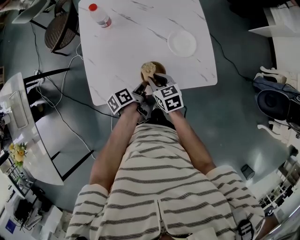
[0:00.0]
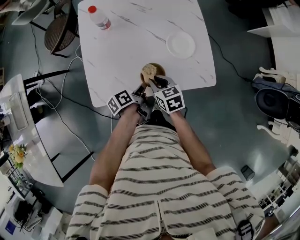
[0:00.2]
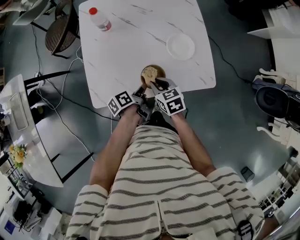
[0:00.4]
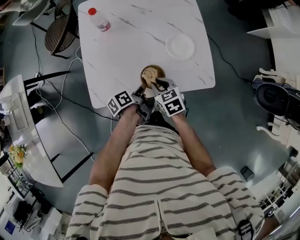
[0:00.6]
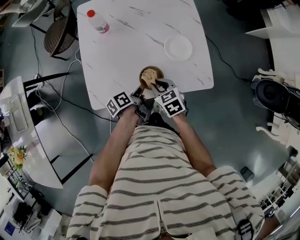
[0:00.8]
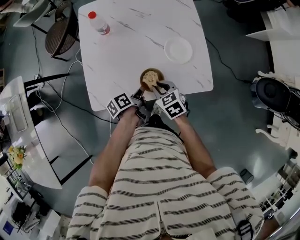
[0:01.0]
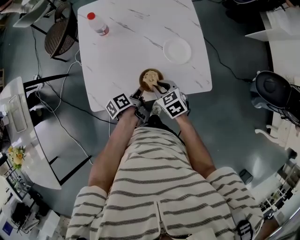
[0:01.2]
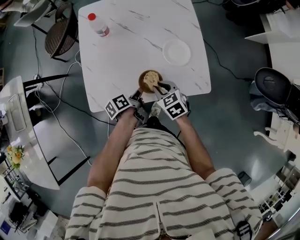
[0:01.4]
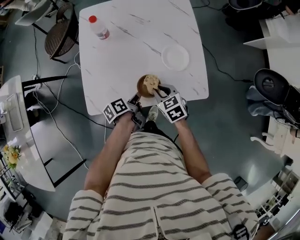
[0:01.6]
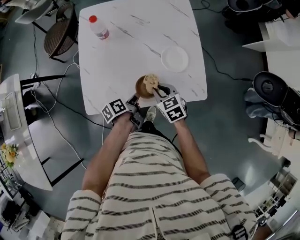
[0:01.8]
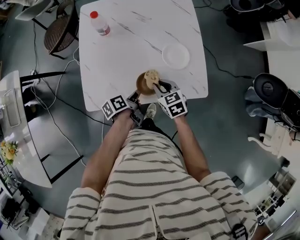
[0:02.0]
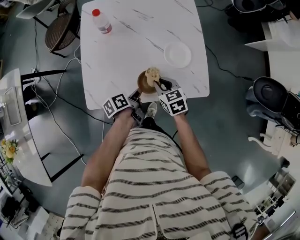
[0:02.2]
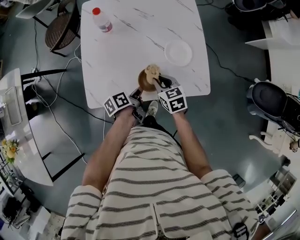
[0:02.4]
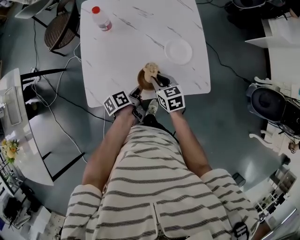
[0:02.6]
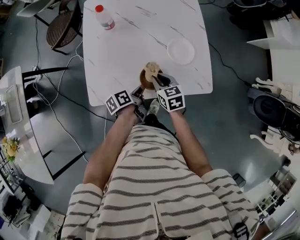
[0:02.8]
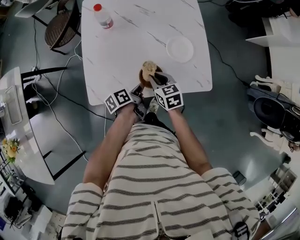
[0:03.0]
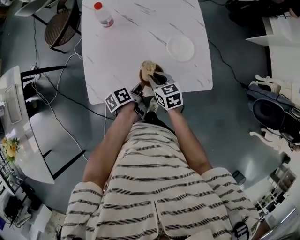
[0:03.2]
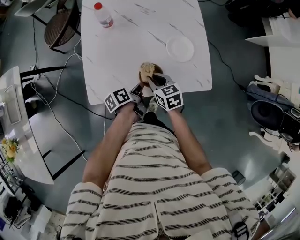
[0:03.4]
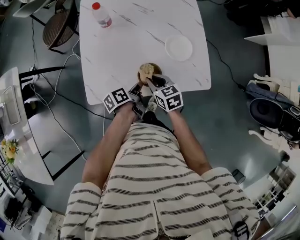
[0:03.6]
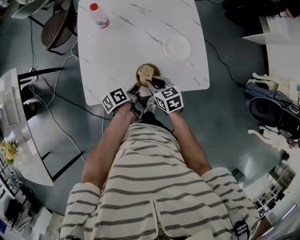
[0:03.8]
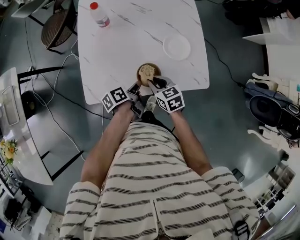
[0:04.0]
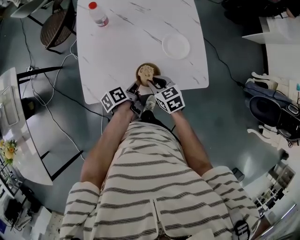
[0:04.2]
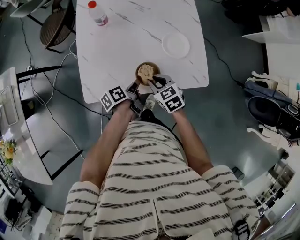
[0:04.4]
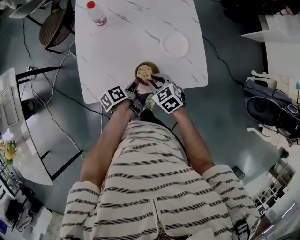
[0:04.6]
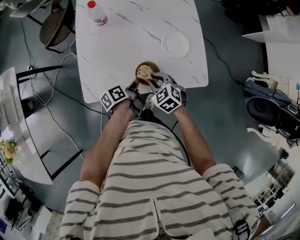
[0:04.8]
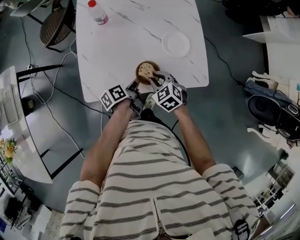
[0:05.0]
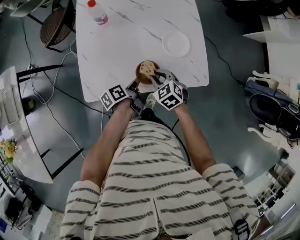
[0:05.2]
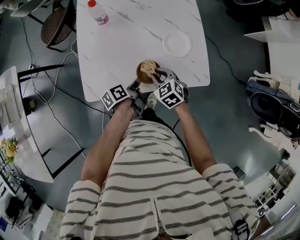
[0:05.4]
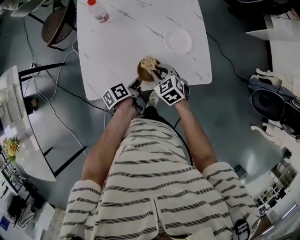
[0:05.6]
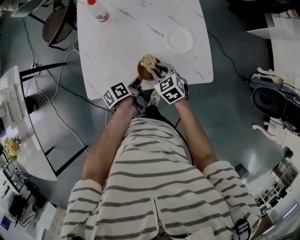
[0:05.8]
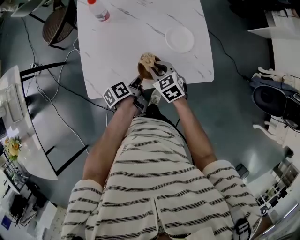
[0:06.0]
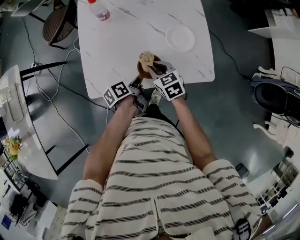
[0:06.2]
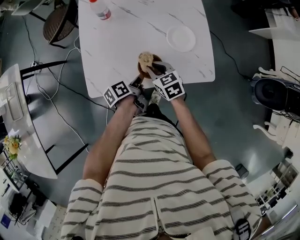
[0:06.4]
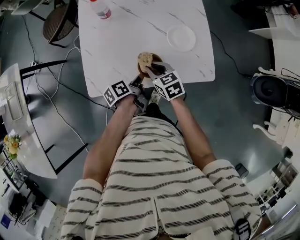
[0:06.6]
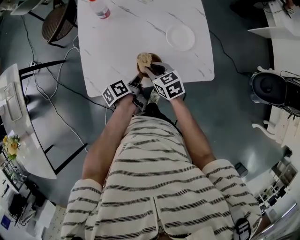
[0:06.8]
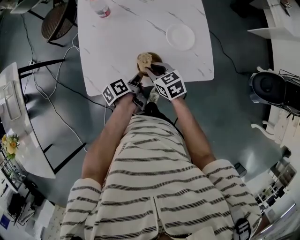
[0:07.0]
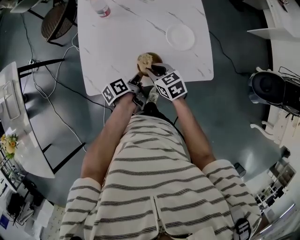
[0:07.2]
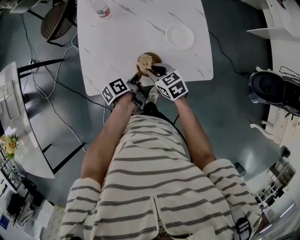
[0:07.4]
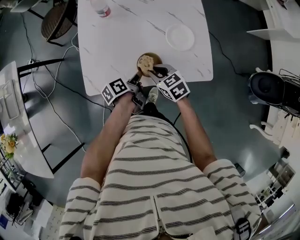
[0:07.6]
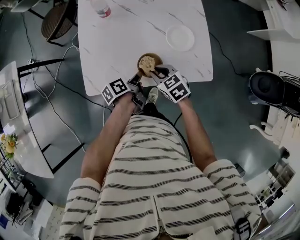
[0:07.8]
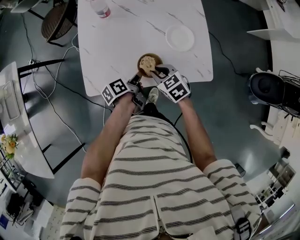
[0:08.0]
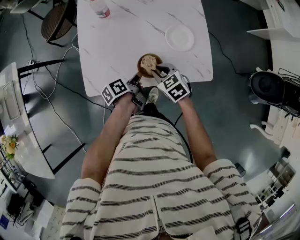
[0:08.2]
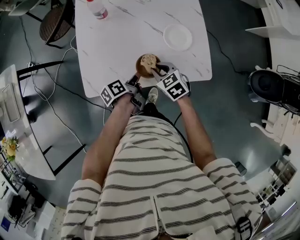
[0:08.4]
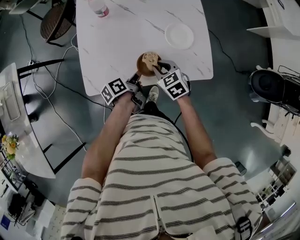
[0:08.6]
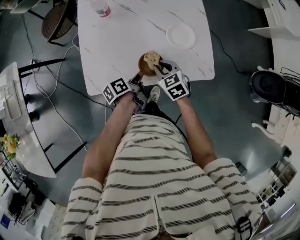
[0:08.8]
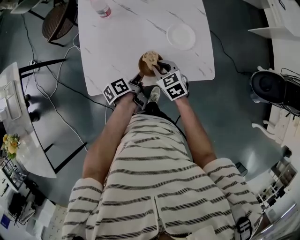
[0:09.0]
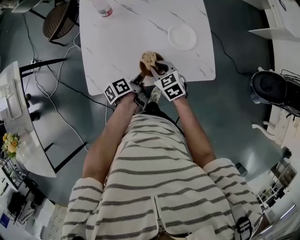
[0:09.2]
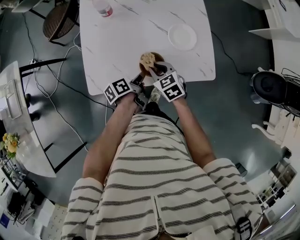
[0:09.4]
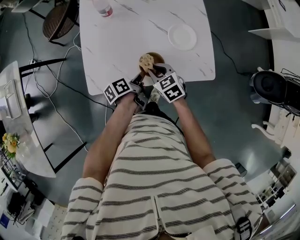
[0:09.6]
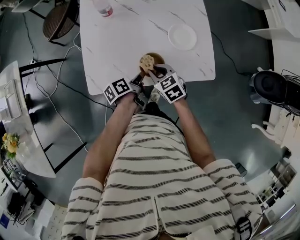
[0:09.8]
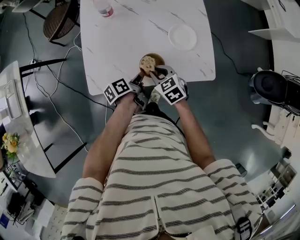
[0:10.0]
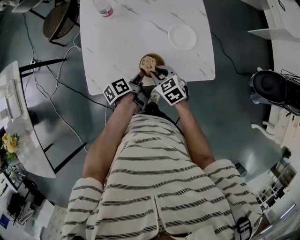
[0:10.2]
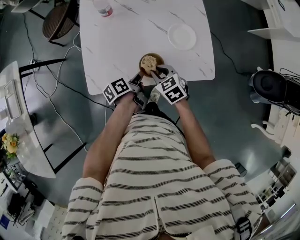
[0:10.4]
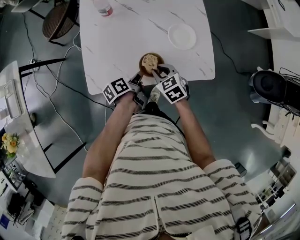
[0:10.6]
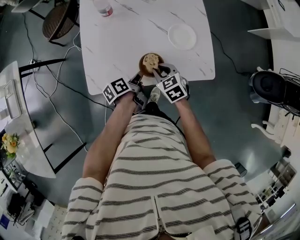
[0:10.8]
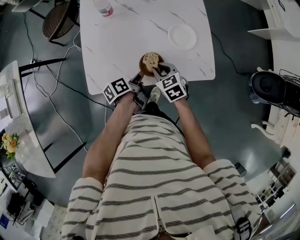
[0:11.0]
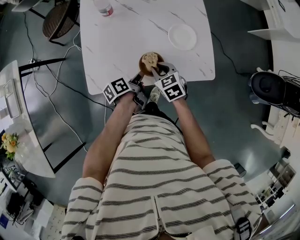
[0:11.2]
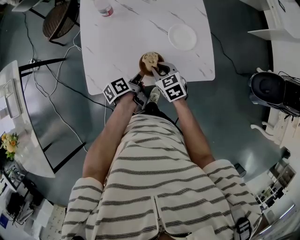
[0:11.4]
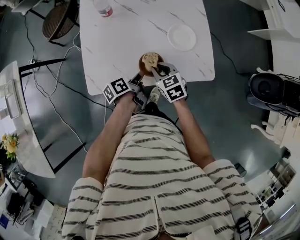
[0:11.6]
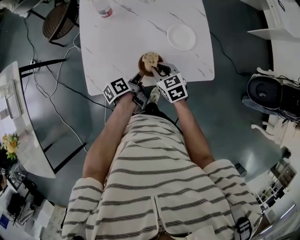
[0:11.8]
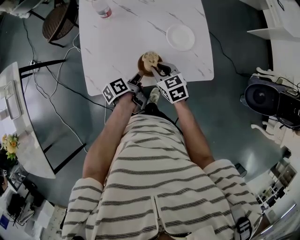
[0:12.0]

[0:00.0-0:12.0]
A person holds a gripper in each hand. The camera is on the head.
0:00.0 to 0:04.4: There are only small adjustments of the grippers.
0:04.4 to 0:12.0: The grippers move only a little.

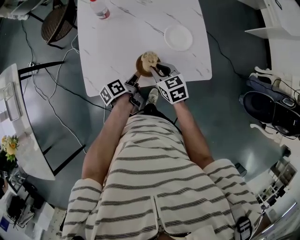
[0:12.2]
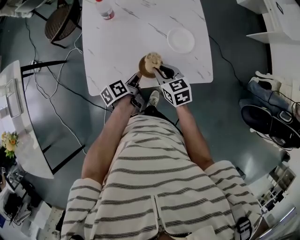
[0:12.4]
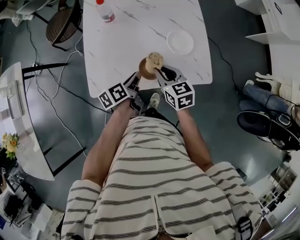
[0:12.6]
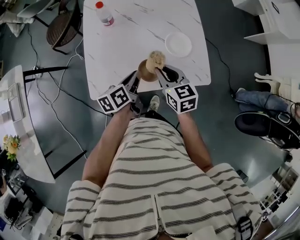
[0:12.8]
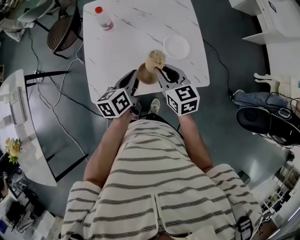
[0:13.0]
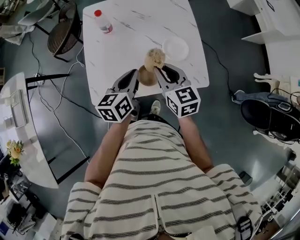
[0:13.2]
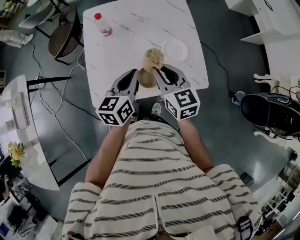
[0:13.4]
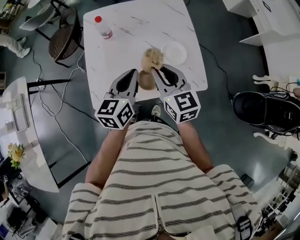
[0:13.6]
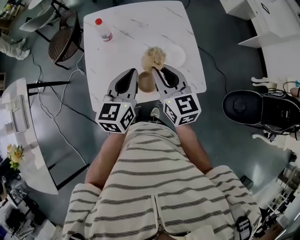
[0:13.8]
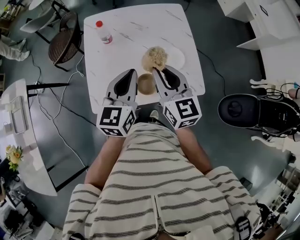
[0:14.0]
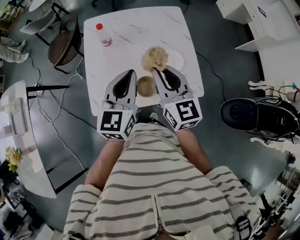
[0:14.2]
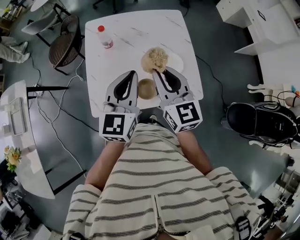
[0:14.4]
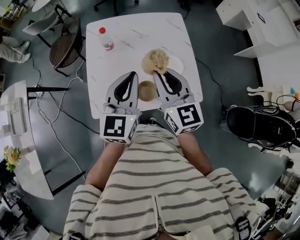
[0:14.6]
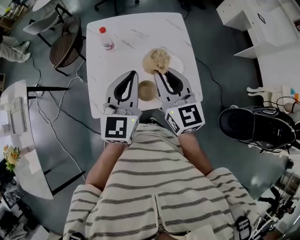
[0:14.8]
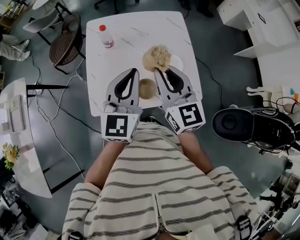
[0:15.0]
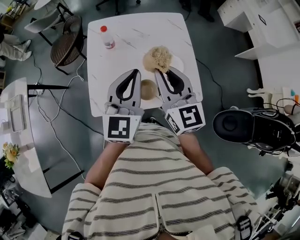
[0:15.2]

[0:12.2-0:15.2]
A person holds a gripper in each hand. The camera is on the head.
0:12.2 to 0:13.8: The two grippers go approximately 25 cm upward. The left gripper rolls clockwise, seen from behind, by approximately 60 degrees. Meanwhile the right gripper changes its angle by some 30 degrees.
0:13.8 to 0:15.2: Both grippers travel together upward, approximately 10 cm. The left gripper swivels roughly 20 degrees.

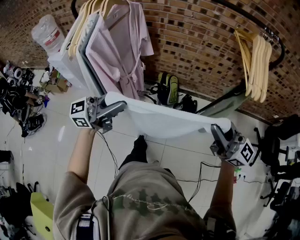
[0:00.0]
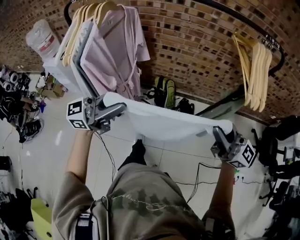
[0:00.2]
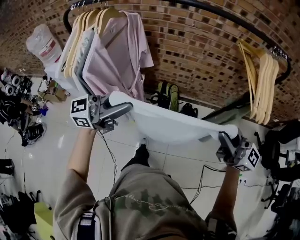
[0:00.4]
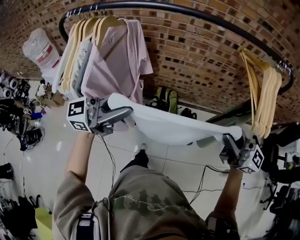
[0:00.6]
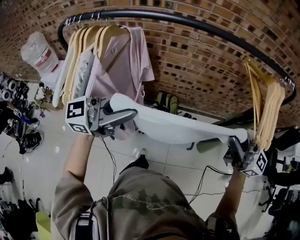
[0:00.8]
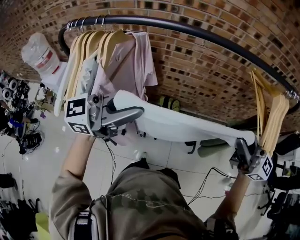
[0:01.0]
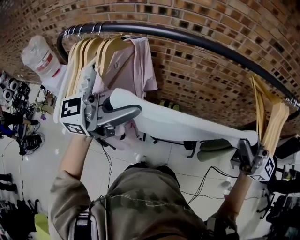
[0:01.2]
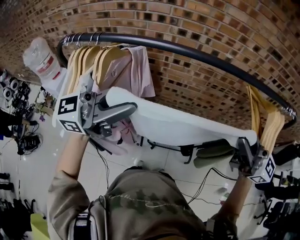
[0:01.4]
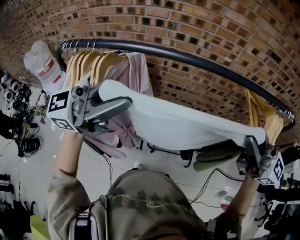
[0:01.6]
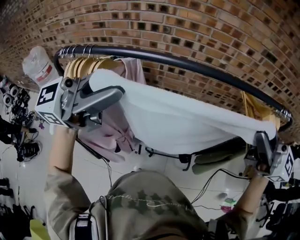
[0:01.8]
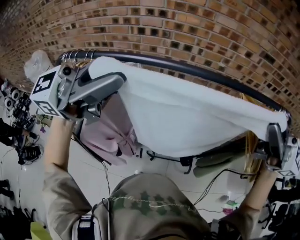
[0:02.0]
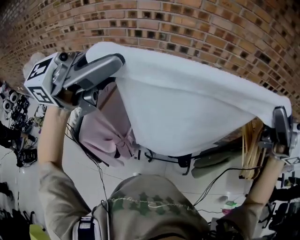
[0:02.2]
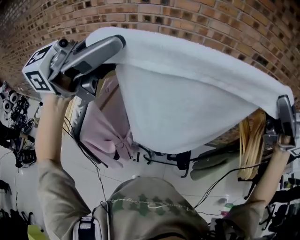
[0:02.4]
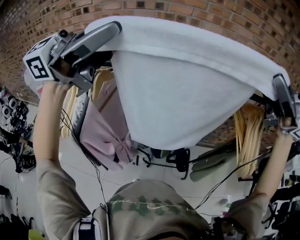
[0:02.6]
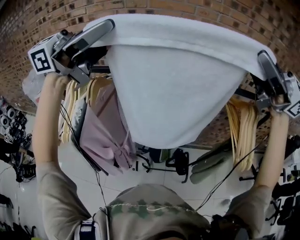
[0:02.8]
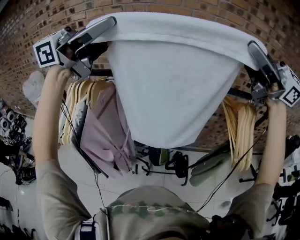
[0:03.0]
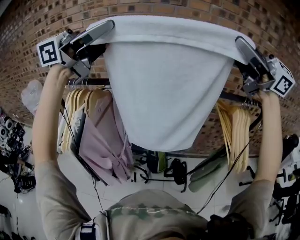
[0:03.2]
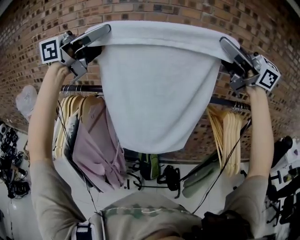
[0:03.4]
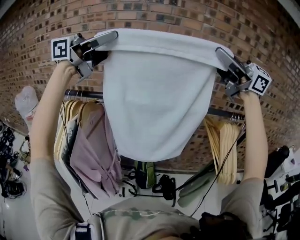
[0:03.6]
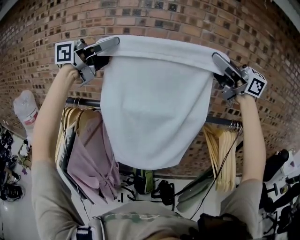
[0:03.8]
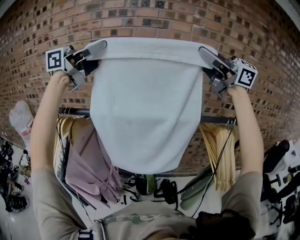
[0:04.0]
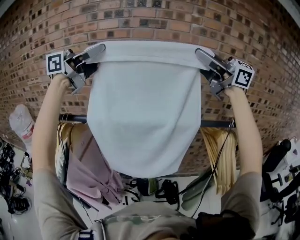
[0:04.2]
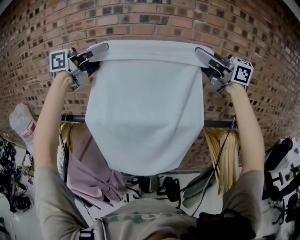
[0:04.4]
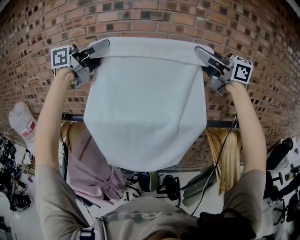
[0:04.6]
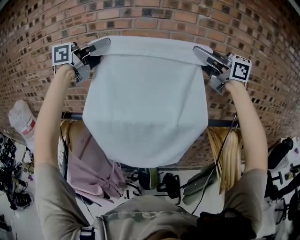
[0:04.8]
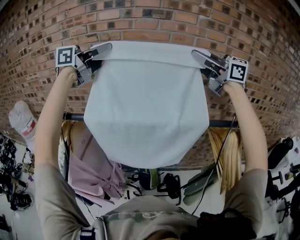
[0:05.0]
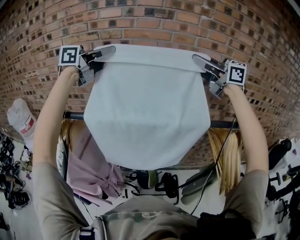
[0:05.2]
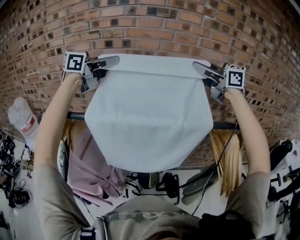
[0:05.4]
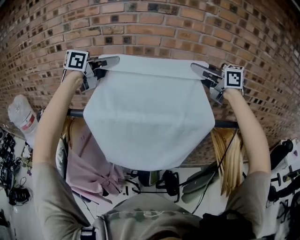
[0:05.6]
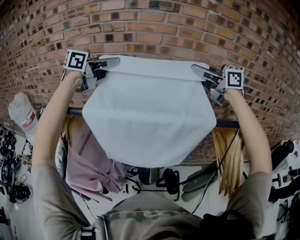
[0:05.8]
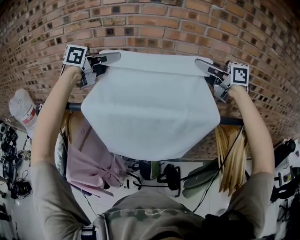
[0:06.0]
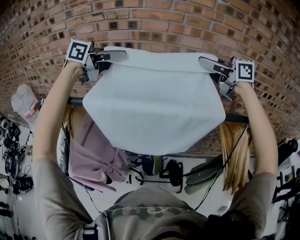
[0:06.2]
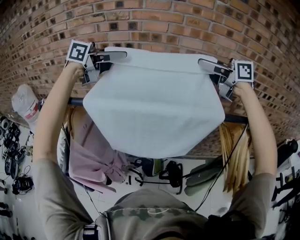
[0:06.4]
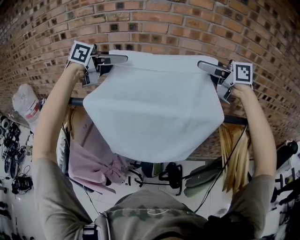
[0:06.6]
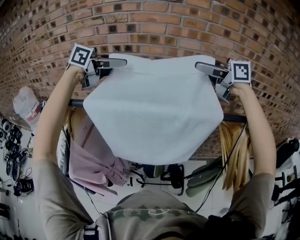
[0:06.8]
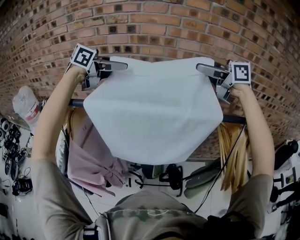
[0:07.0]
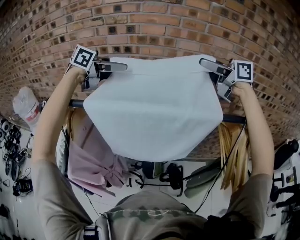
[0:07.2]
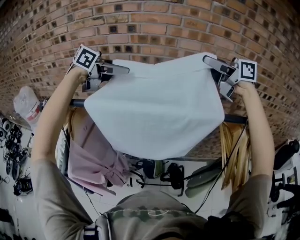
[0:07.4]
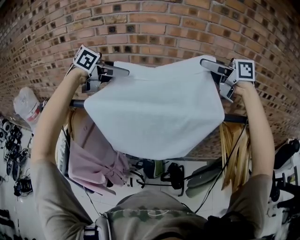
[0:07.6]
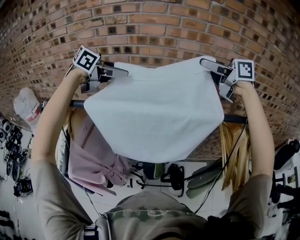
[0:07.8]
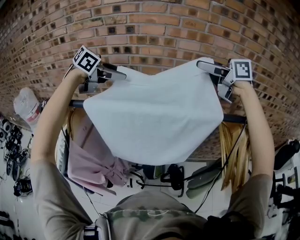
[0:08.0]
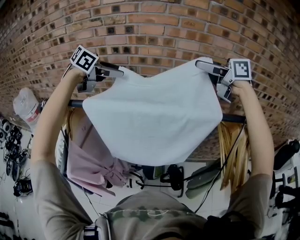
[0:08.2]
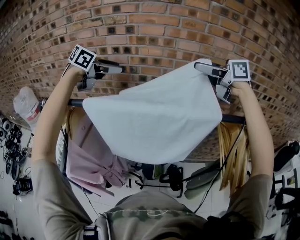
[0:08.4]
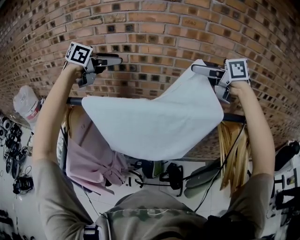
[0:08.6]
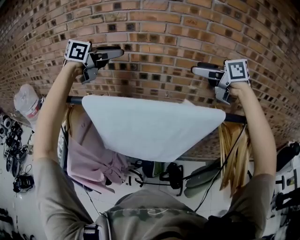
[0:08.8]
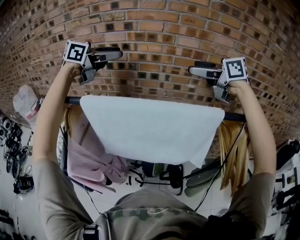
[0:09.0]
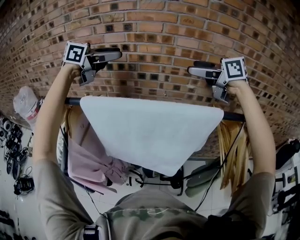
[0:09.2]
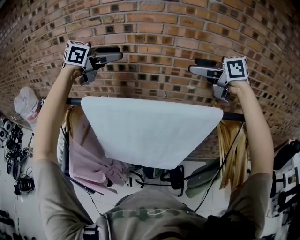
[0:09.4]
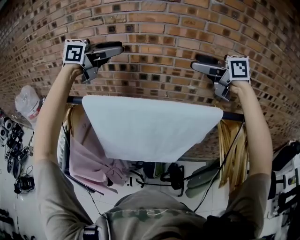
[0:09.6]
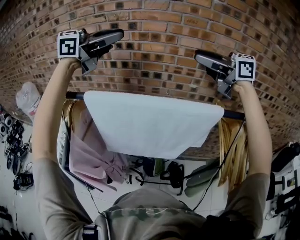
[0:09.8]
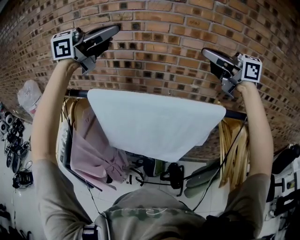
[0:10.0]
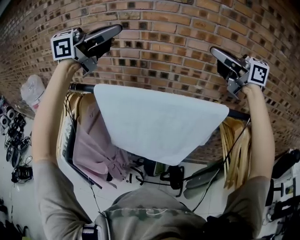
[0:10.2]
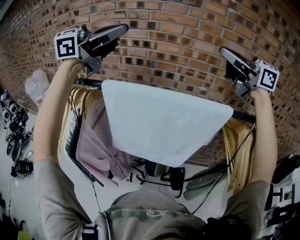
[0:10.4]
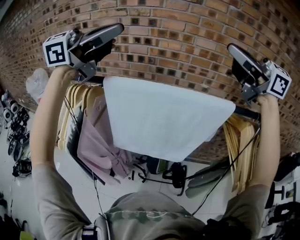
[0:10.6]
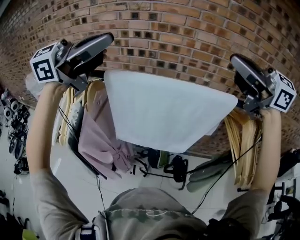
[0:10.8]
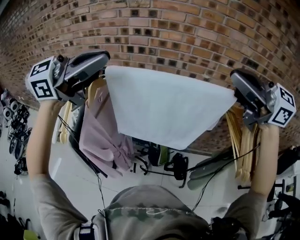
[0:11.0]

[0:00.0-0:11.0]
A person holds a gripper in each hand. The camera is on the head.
0:00.0 to 0:01.6: The right gripper moves some 30 cm, while the left gripper changes place by about 30 cm.
0:01.6 to 0:03.2: Both grippers move upward, roughly 25 cm.
0:03.2 to 0:04.8: The right gripper shifts by approximately 20 cm; the left gripper ends up roughly 20 cm from where it was.
0:04.8 to 0:06.2: Both grippers travel together downward, about 10 cm. The right gripper rotates some 20 degrees. The left gripper changes its angle by some 20 degrees.
0:06.2 to 0:07.8: The left gripper is displaced downward by approximately 5 cm, and opens. The right gripper opens.
0:07.8 to 0:09.4: The left gripper travels upward by some 10 cm.
0:09.4 to 0:11.0: The left gripper travels upward and back again, roughly 10 cm each way, rotates about 20 degrees, and closes. The right gripper ends up some 25 cm from where it was, changes its angle by about 20 degrees, and closes its fingers.
